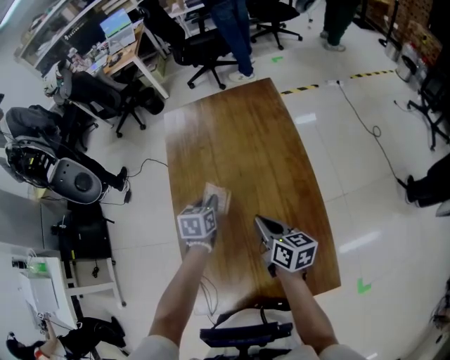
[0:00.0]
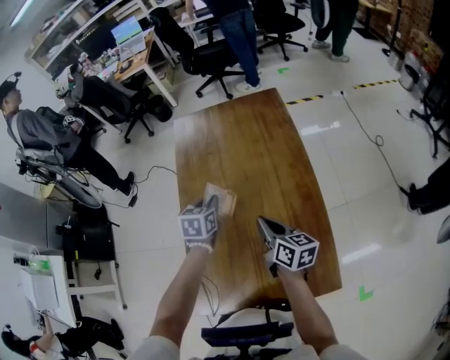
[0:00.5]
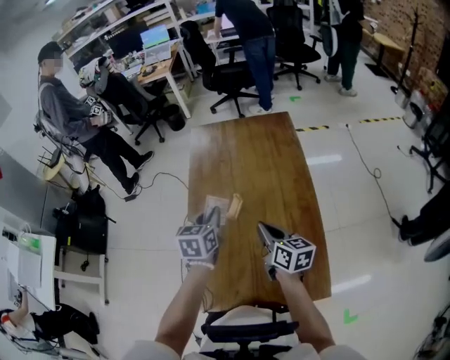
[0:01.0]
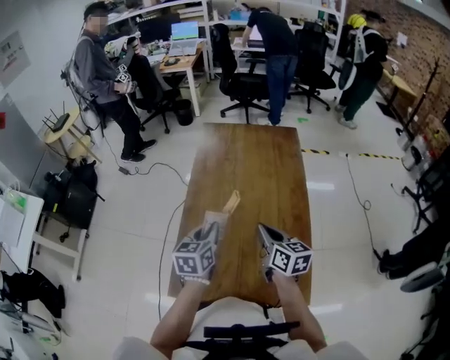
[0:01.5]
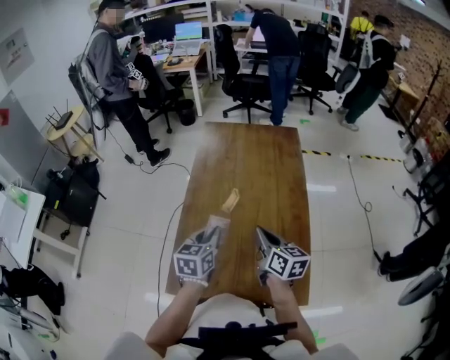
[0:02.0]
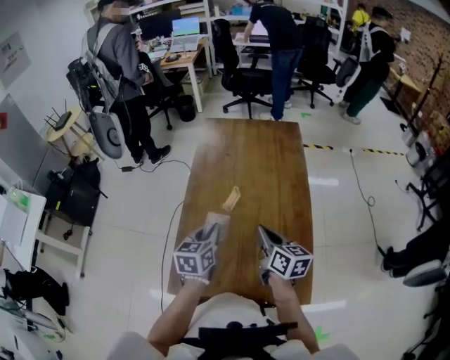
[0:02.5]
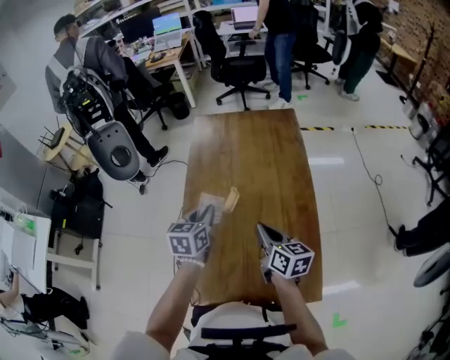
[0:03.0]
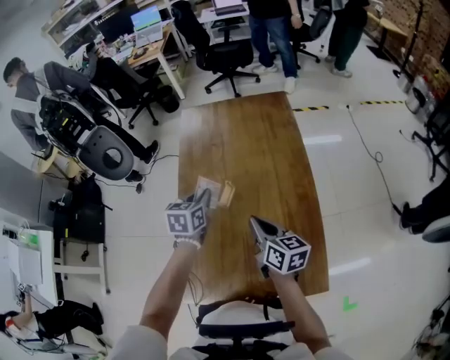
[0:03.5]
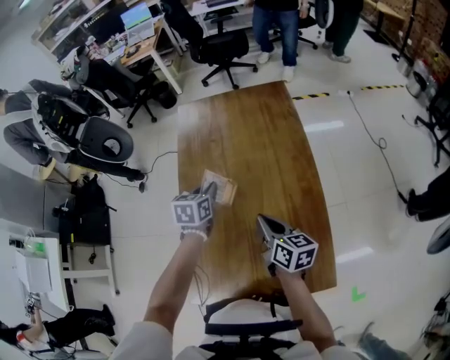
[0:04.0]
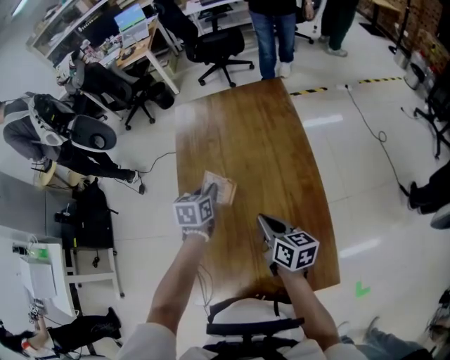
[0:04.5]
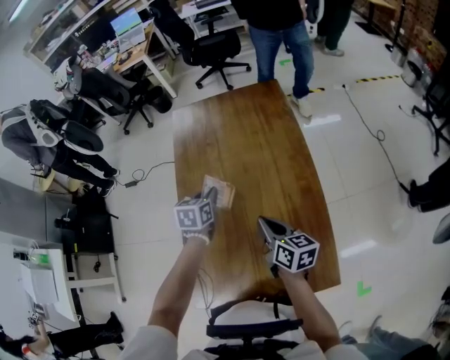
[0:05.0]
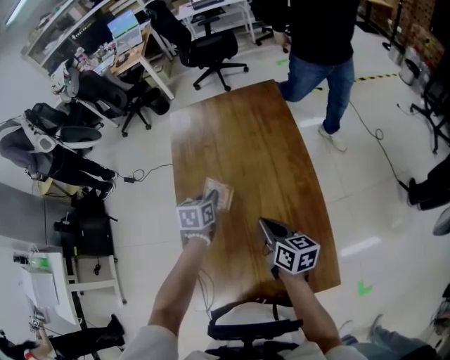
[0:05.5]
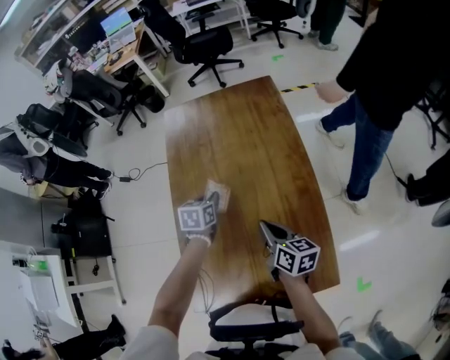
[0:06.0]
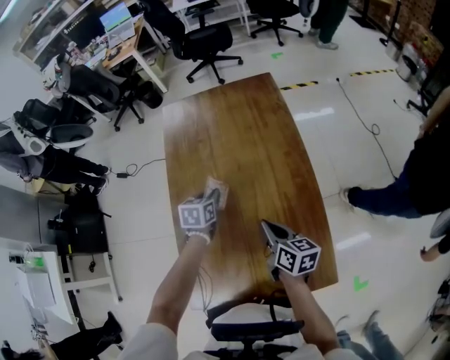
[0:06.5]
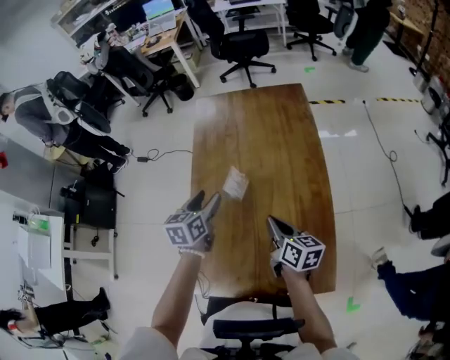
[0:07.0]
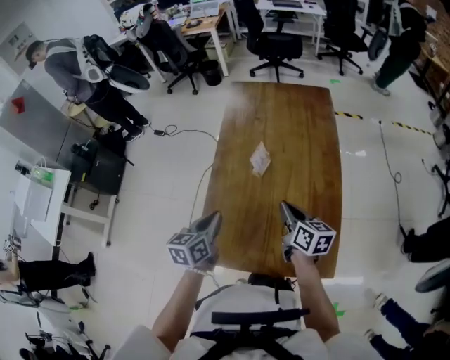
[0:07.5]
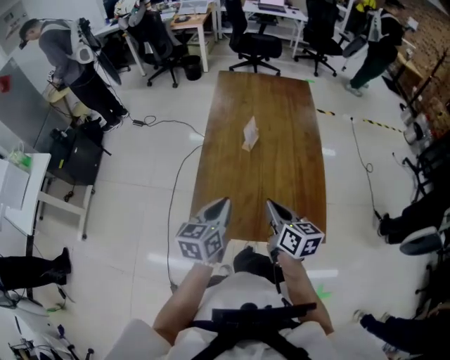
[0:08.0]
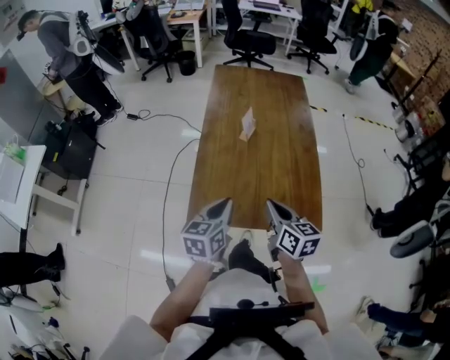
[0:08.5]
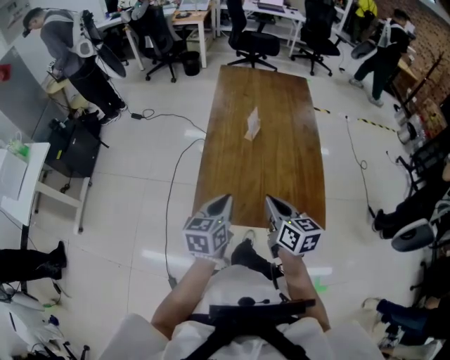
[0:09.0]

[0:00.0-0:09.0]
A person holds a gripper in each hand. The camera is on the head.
0:00.0 to 0:02.0: The left gripper goes roughly 20 cm backward and upward, and rotates approximately 20 degrees, while the right gripper goes about 10 cm backward and upward.
0:02.0 to 0:04.5: The right gripper heads downward, covering some 5 cm. The left gripper shifts roughly 20 cm forward.
0:04.5 to 0:07.0: The left gripper heads backward, covering approximately 5 cm, and opens.
0:07.0 to 0:09.0: The right gripper shifts approximately 25 cm backward and to the left, while the left gripper shifts roughly 30 cm backward, and closes its fingers.

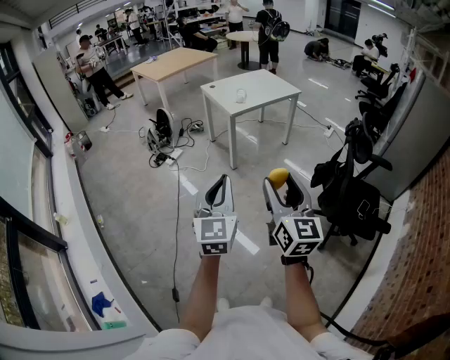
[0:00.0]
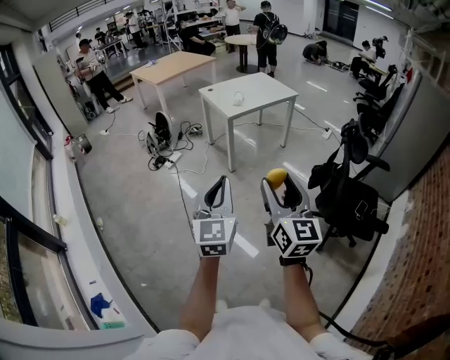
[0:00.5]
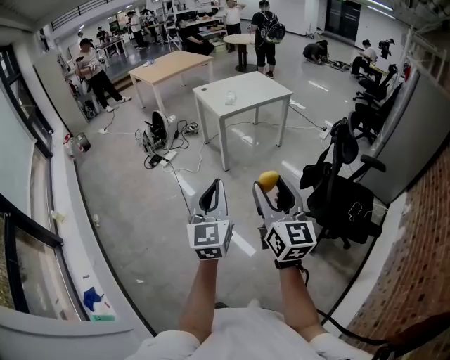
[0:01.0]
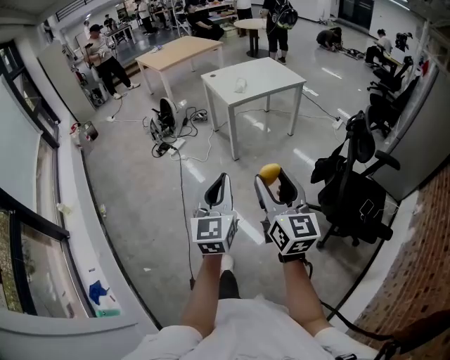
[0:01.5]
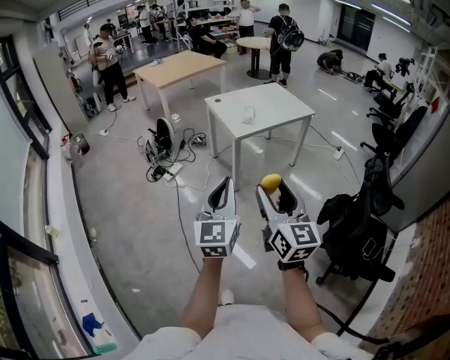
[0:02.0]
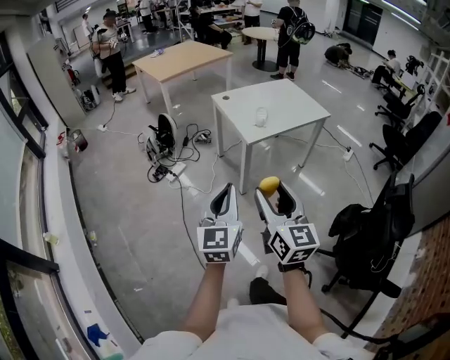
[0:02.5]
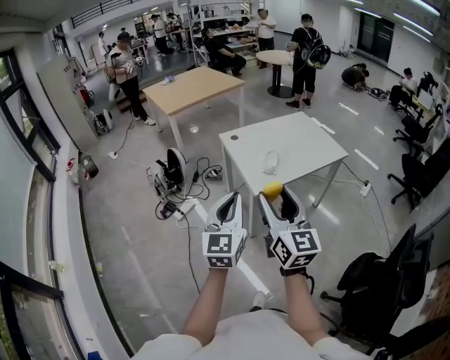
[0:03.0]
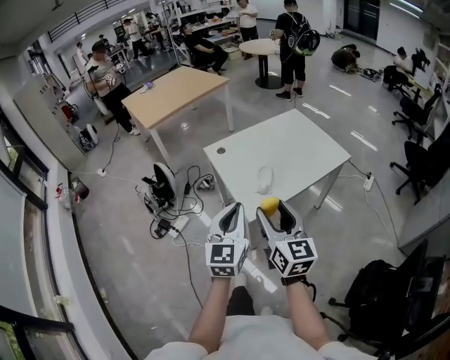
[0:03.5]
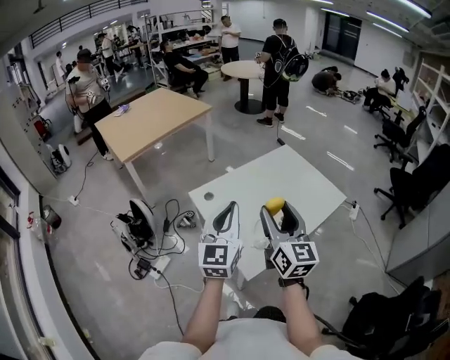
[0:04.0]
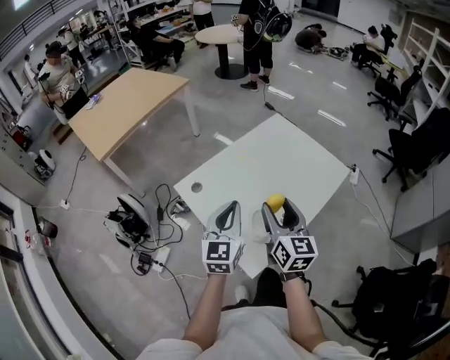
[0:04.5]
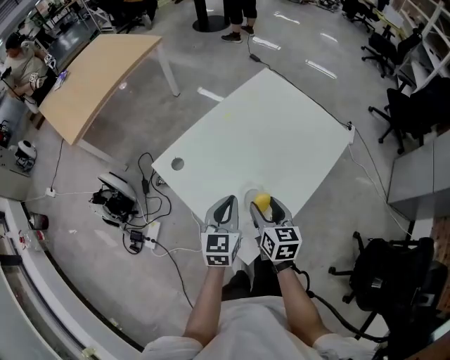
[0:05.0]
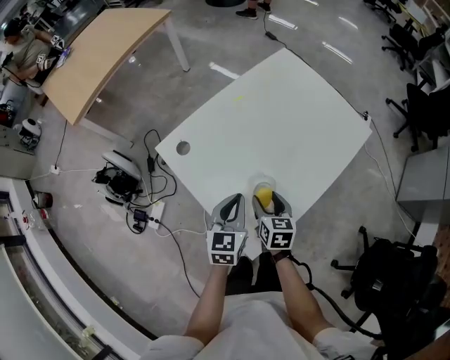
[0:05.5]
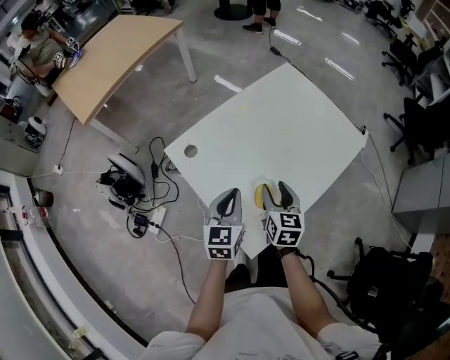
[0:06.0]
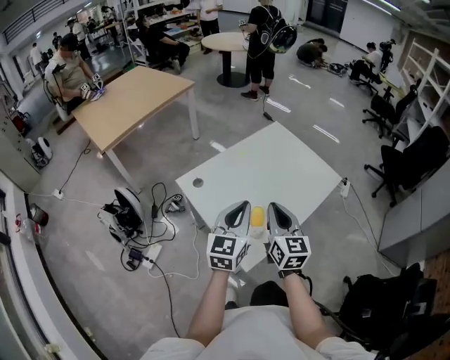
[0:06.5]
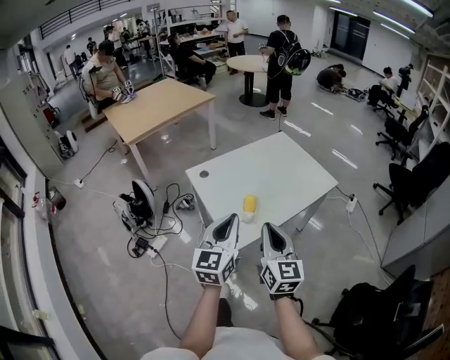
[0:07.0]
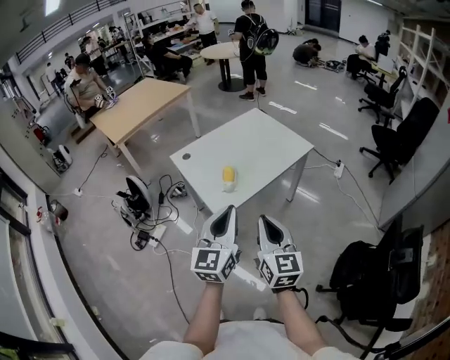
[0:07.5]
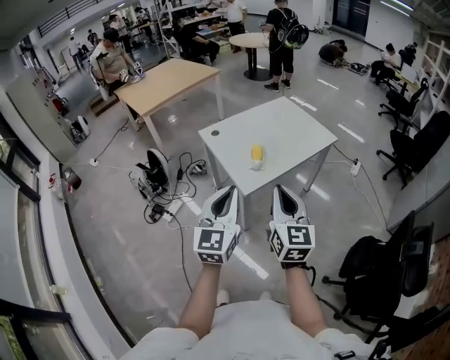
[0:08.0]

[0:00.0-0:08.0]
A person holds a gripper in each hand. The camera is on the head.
0:00.0 to 0:02.0: The grippers both shift forward by approximately 20 cm.
0:02.0 to 0:04.0: Both grippers are carried forward, roughly 70 cm.
0:04.0 to 0:06.0: The two grippers go some 30 cm downward and forward. The left gripper changes its angle by about 30 degrees; the right gripper tips its fingers downward by about 30 degrees.
0:06.0 to 0:08.0: The pair of grippers is taken backward, about 40 cm. Both grippers move upward, roughly 25 cm. The right gripper swivels some 30 degrees, and closes its fingers. The left gripper swivels about 30 degrees.

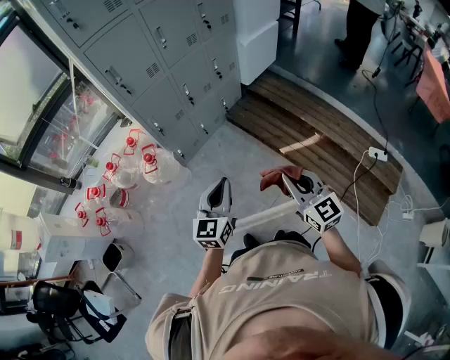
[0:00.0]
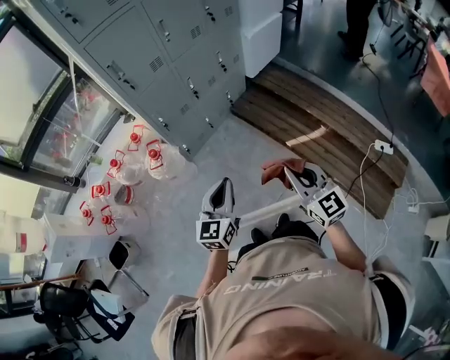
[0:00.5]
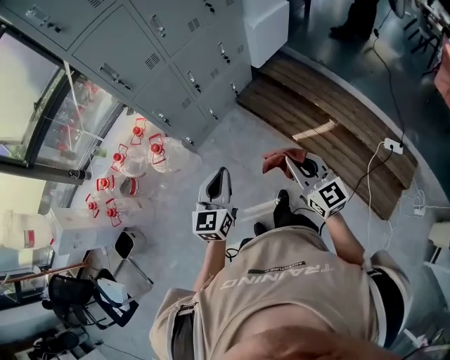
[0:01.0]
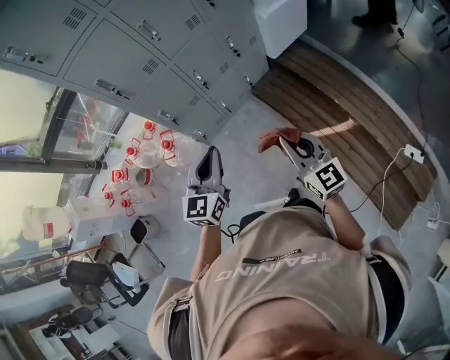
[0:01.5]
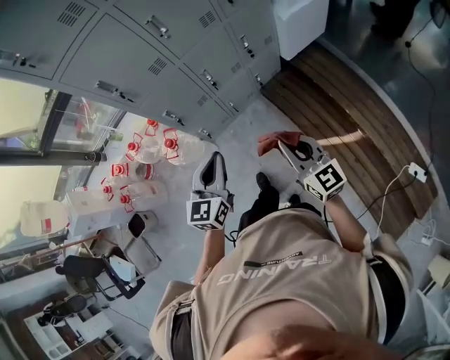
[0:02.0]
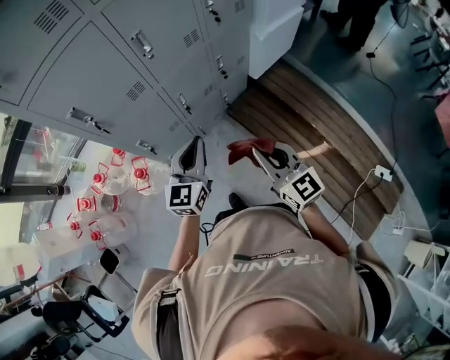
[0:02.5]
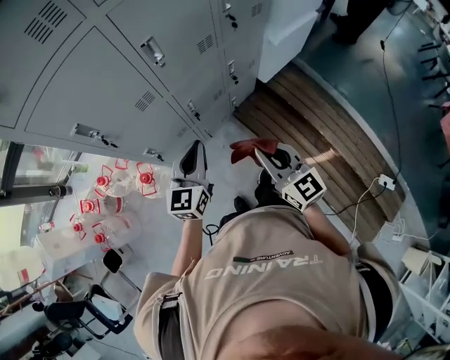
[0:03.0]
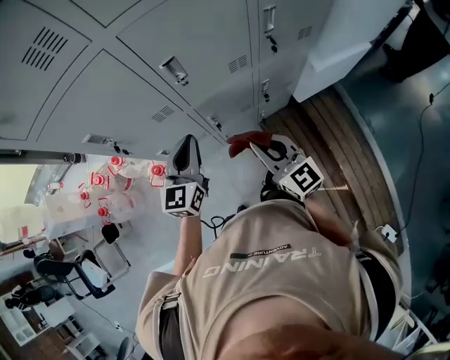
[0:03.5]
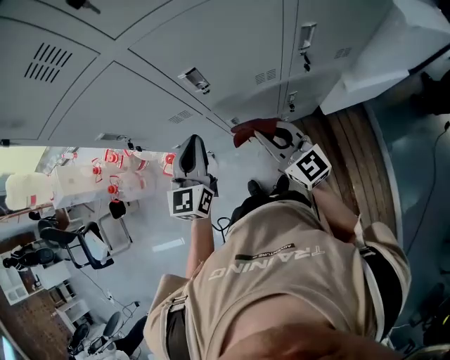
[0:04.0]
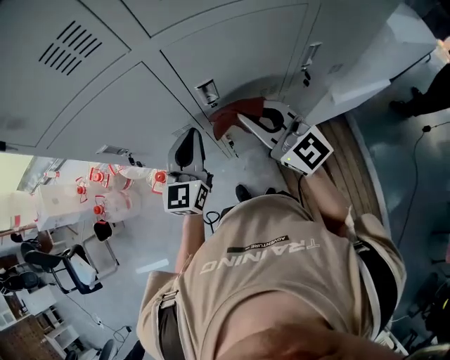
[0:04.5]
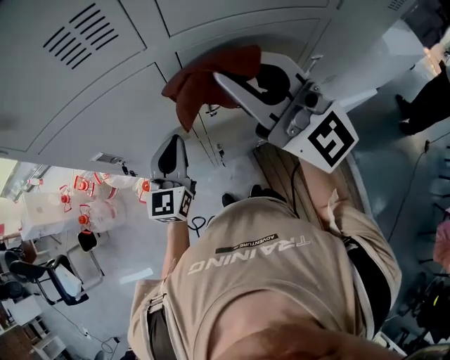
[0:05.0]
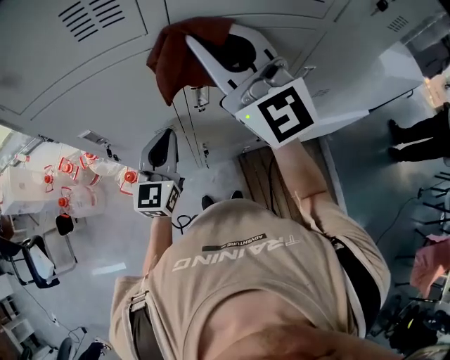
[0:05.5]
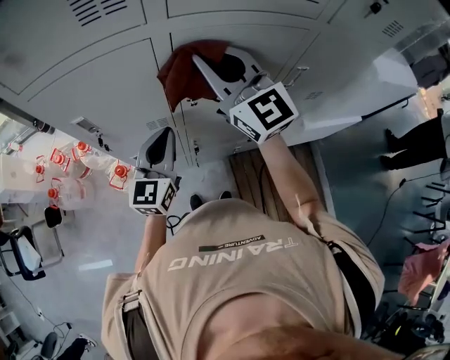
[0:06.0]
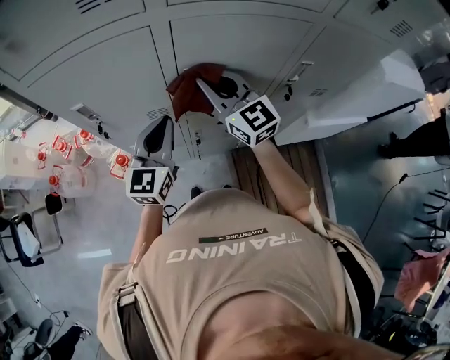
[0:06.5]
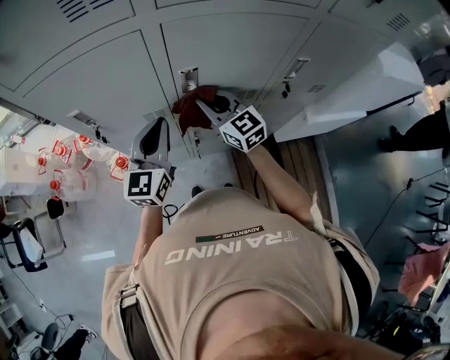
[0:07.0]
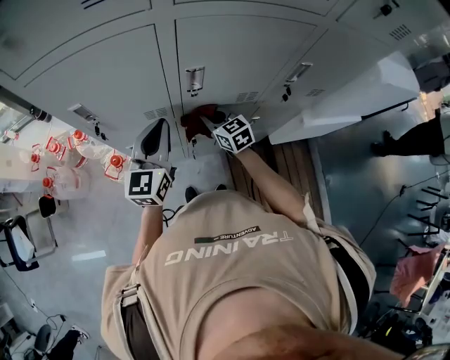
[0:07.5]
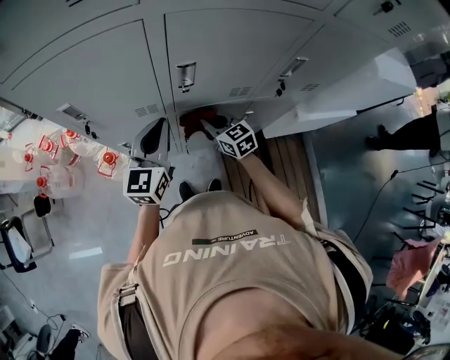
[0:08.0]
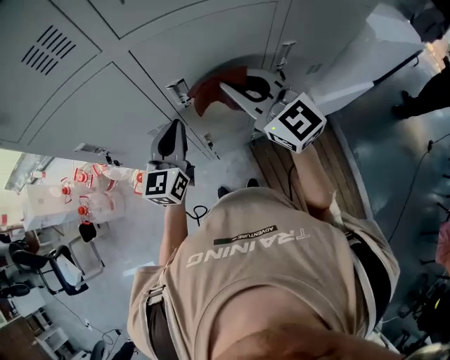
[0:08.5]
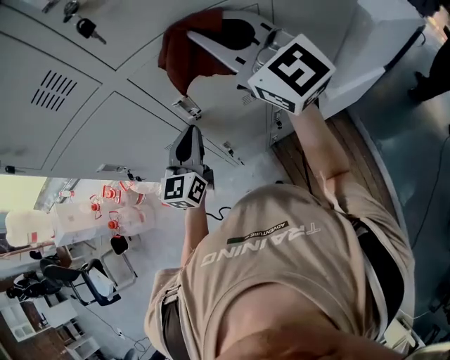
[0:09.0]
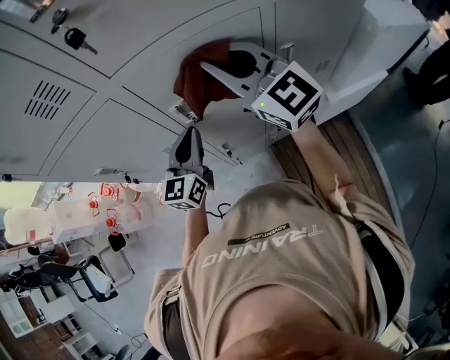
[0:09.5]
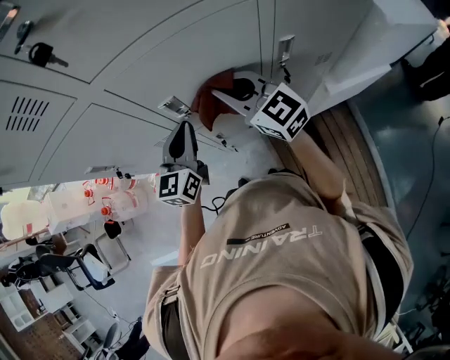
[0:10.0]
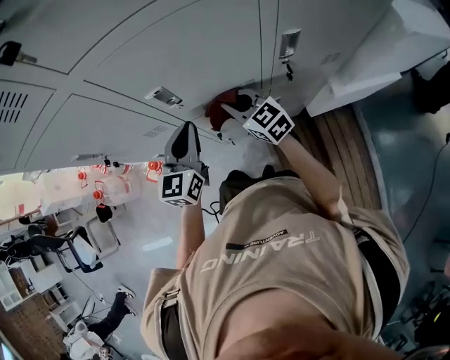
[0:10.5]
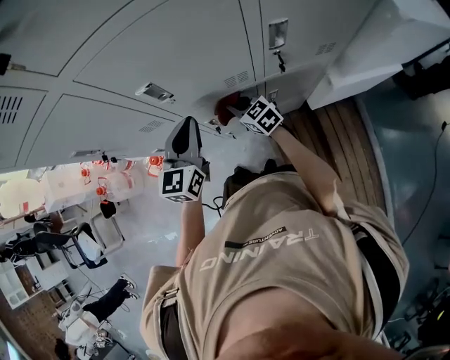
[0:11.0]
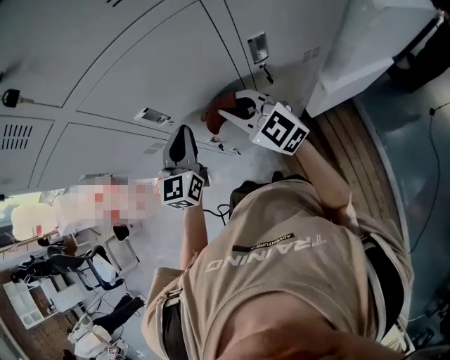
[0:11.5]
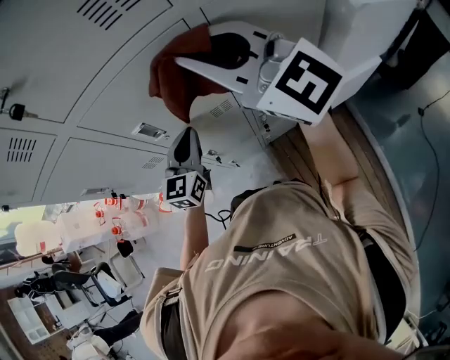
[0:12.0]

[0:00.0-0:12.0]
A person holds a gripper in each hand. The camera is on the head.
0:00.0 to 0:02.0: The two grippers go some 30 cm forward.
0:02.0 to 0:04.0: The left gripper ends up about 40 cm from where it was, and changes its angle by about 20 degrees, while the right gripper moves roughly 40 cm, and changes its angle by approximately 30 degrees.
0:04.0 to 0:06.0: The right gripper is displaced upward and forward by some 25 cm, and turns by roughly 20 degrees.
0:06.0 to 0:08.0: The right gripper is displaced downward by about 35 cm, and tilts its fingers approximately 40 degrees downward.
0:08.0 to 0:10.0: The right gripper is displaced upward by some 20 cm, and turns by about 20 degrees. Meanwhile the left gripper is displaced to the right by some 5 cm.
0:10.0 to 0:12.0: The left gripper goes approximately 10 cm to the right; the right gripper goes some 20 cm upward and to the right, and rotates approximately 20 degrees.
